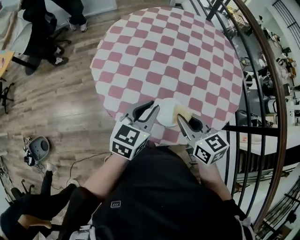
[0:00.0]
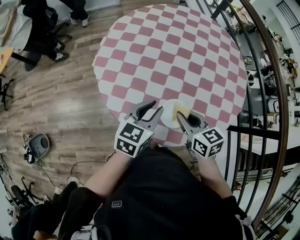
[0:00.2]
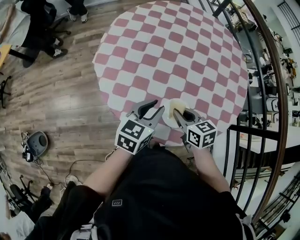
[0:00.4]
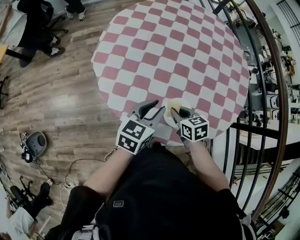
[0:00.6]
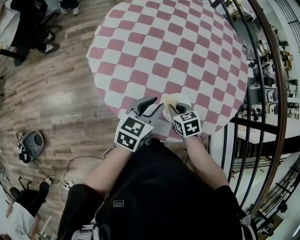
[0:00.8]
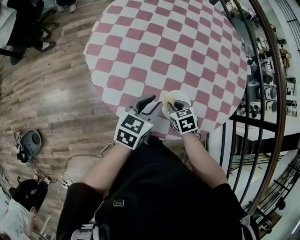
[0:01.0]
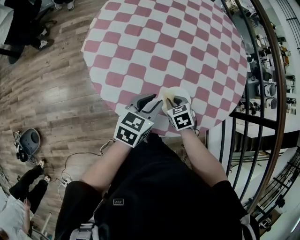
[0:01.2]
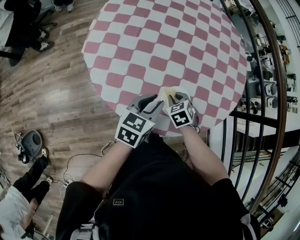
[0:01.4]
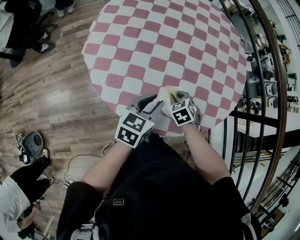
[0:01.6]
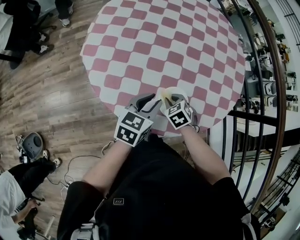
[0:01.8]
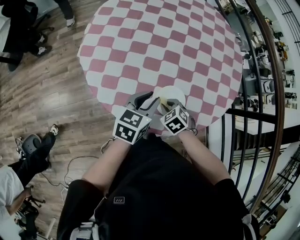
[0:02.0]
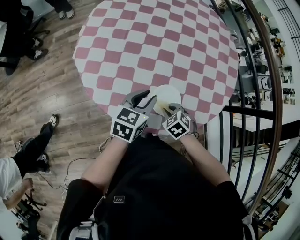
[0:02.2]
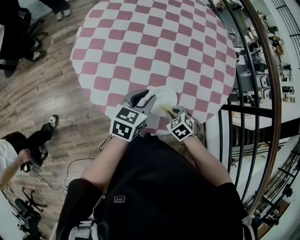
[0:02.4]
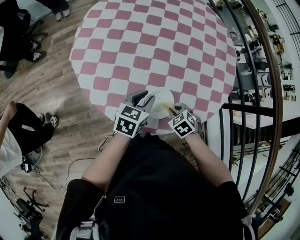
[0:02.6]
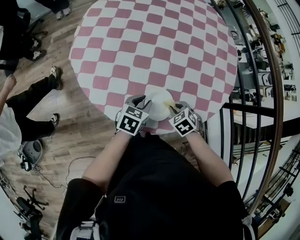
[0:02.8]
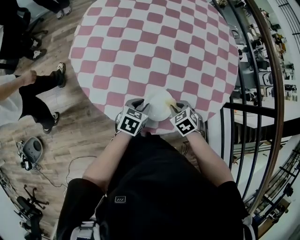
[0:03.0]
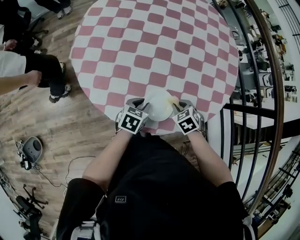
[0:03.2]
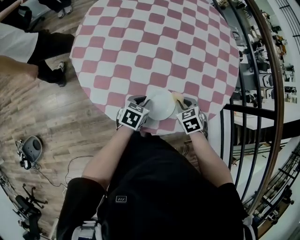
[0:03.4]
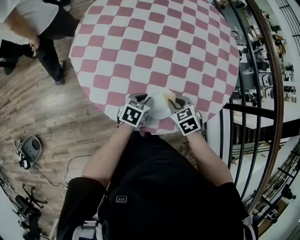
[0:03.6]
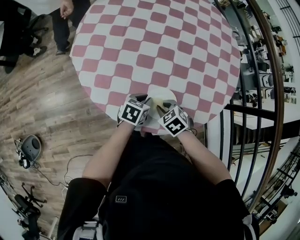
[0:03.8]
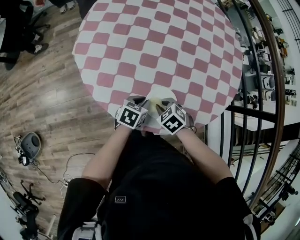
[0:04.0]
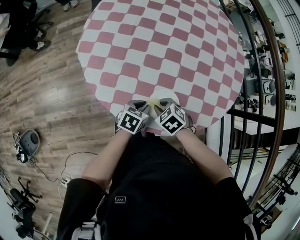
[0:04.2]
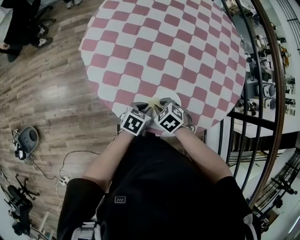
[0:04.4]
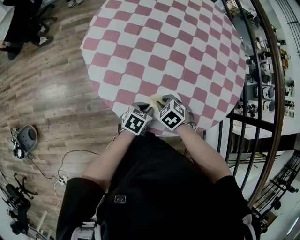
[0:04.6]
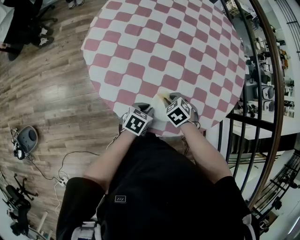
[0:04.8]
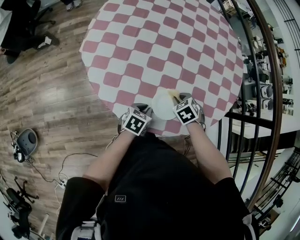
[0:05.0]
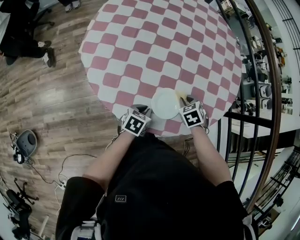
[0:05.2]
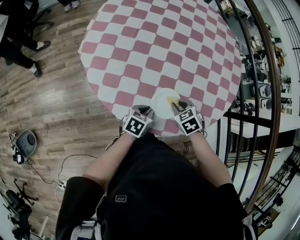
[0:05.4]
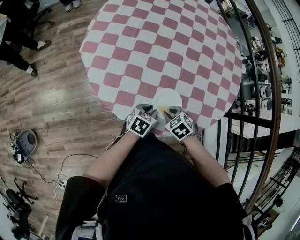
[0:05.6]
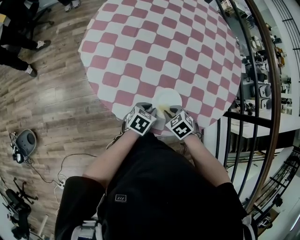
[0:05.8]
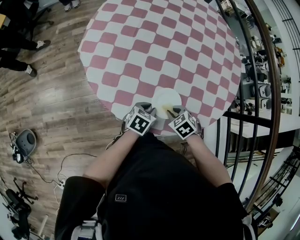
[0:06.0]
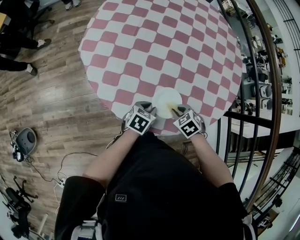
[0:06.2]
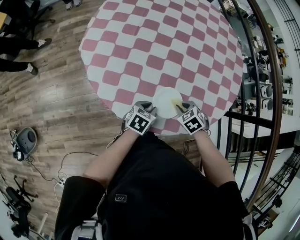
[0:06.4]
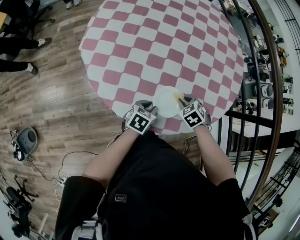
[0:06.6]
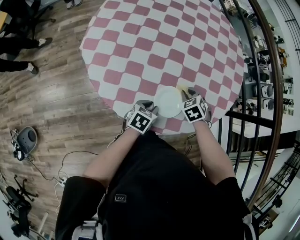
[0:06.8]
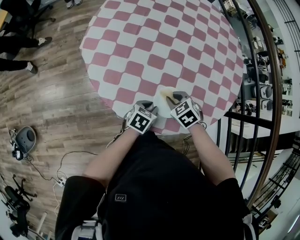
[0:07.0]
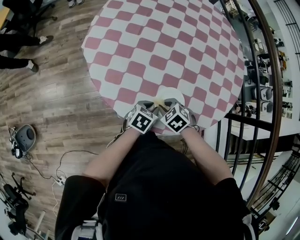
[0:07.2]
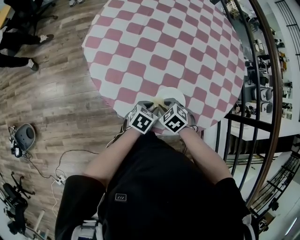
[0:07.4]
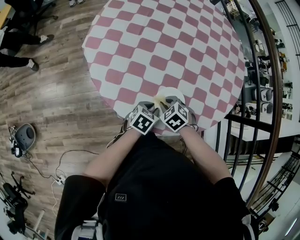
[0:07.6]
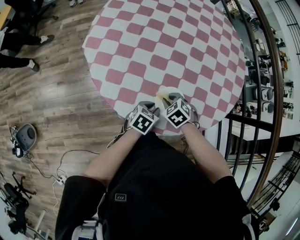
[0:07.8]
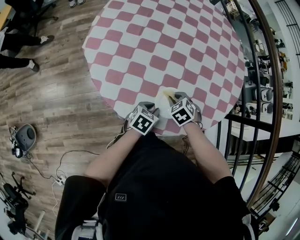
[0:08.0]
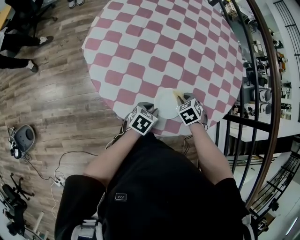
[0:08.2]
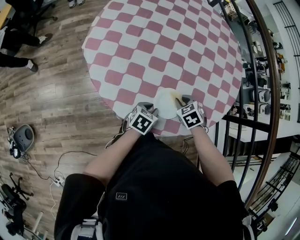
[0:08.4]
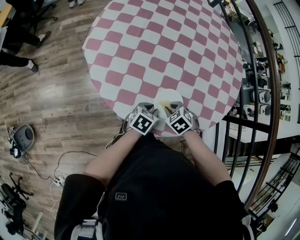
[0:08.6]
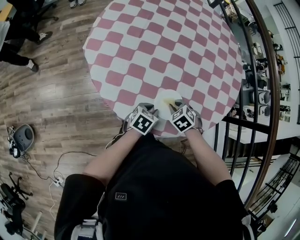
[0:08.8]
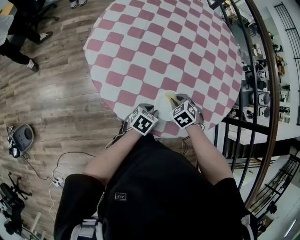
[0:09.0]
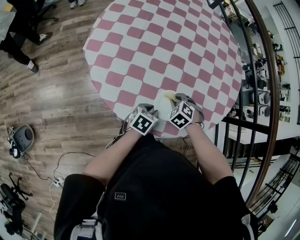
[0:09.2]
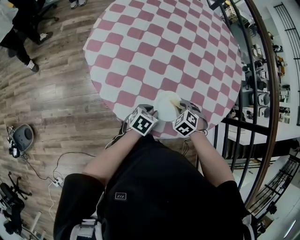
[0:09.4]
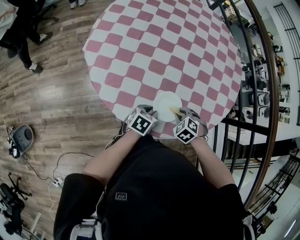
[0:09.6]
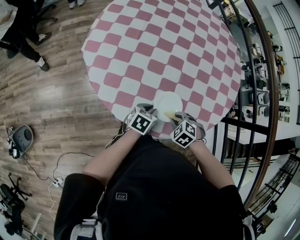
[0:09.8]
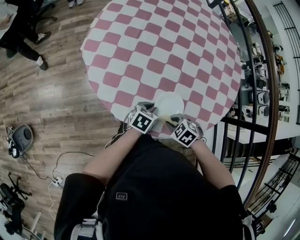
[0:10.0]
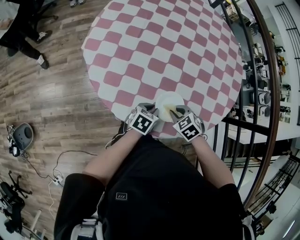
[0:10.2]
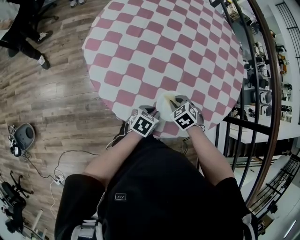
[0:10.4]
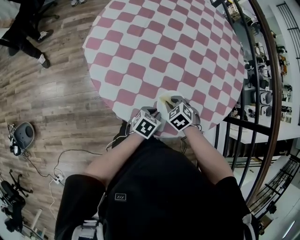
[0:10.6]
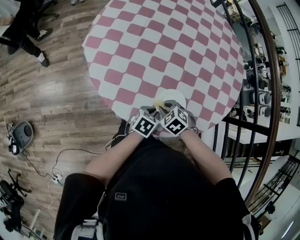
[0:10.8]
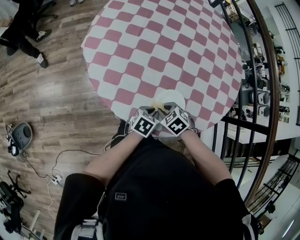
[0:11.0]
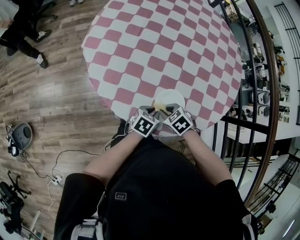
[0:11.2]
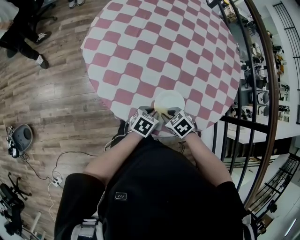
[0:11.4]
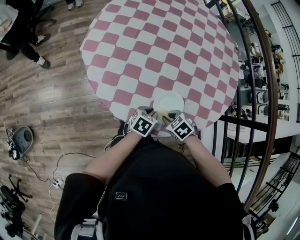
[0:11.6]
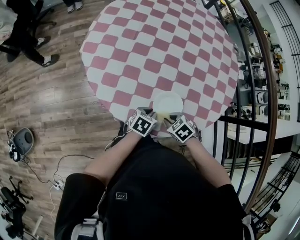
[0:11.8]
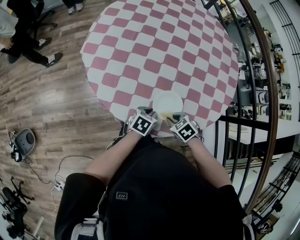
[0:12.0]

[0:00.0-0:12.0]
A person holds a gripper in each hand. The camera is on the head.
0:00.0 to 0:01.6: The left gripper moves downward, roughly 10 cm, while the right gripper travels downward by some 25 cm, and tilts its fingers about 40 degrees downward.
0:01.6 to 0:03.0: The left gripper shifts some 15 cm downward; the right gripper shifts approximately 10 cm to the right and backward.
0:03.0 to 0:04.4: The right gripper travels to the left by roughly 10 cm.
0:10.4 to 0:12.0: The right gripper ends up approximately 10 cm from where it was.

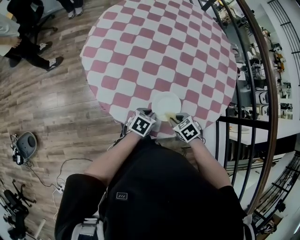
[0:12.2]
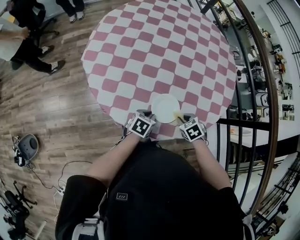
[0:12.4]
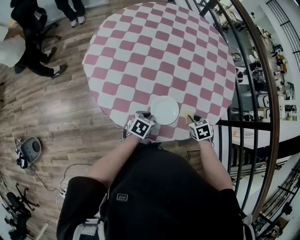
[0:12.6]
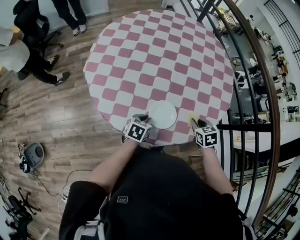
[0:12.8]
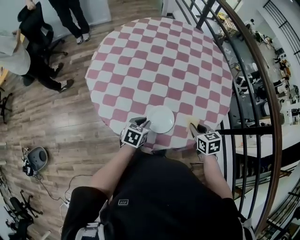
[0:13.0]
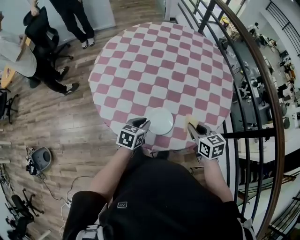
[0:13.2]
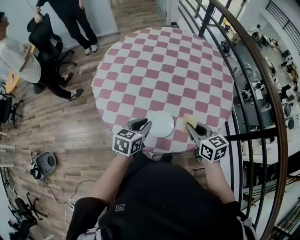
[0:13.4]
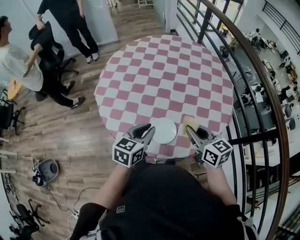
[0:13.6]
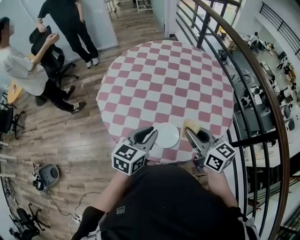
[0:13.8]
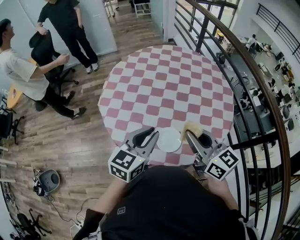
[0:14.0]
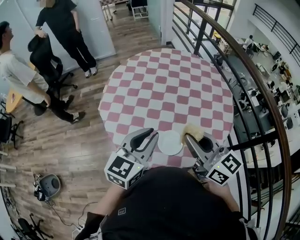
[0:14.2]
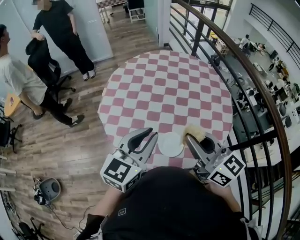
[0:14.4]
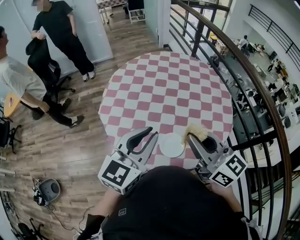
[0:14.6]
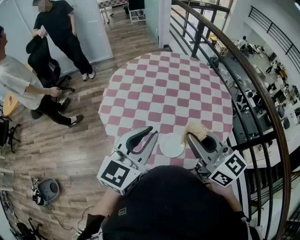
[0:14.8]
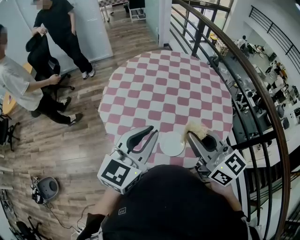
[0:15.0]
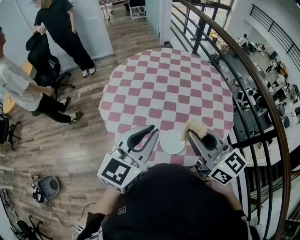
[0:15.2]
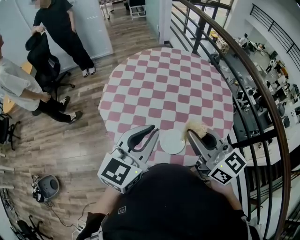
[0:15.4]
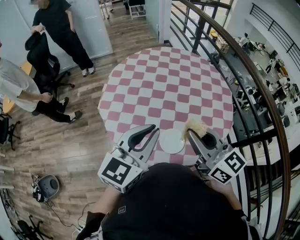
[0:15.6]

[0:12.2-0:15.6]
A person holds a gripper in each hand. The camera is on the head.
0:12.2 to 0:13.8: Both grippers move upward, approximately 30 cm. The left gripper rotates approximately 30 degrees; the right gripper angles its fingers upward, by roughly 60 degrees.
0:13.8 to 0:15.6: The right gripper heads upward and to the left, covering approximately 15 cm. The left gripper moves upward, approximately 15 cm, and rotates about 20 degrees.

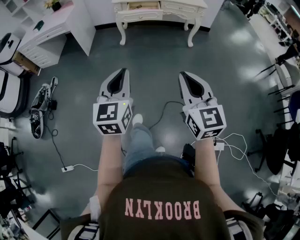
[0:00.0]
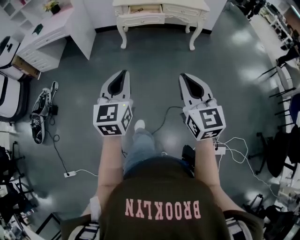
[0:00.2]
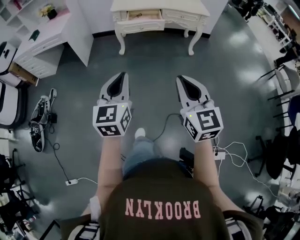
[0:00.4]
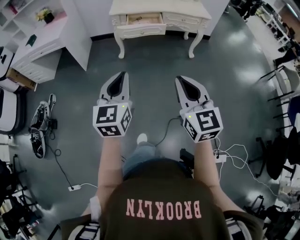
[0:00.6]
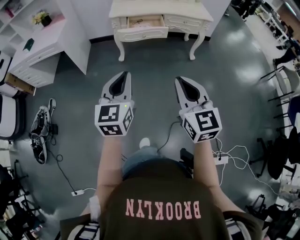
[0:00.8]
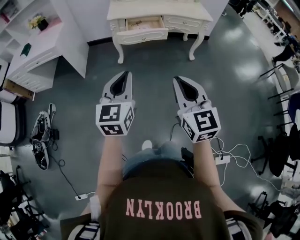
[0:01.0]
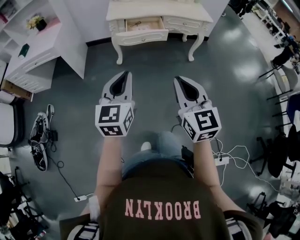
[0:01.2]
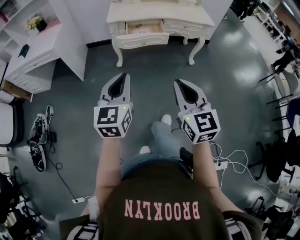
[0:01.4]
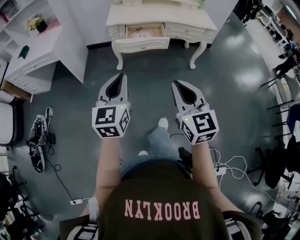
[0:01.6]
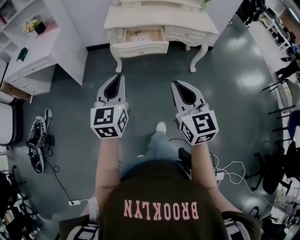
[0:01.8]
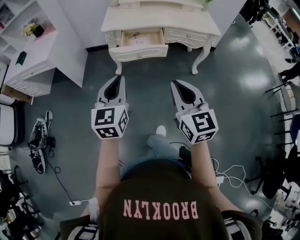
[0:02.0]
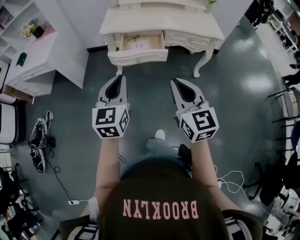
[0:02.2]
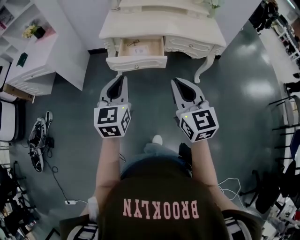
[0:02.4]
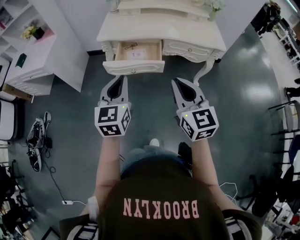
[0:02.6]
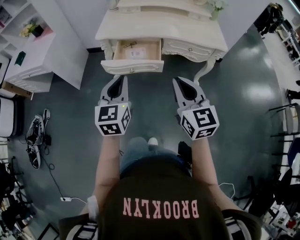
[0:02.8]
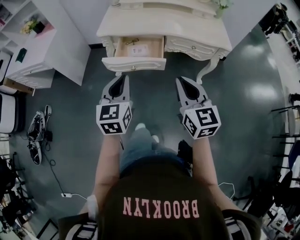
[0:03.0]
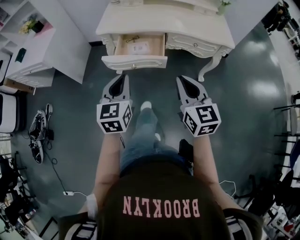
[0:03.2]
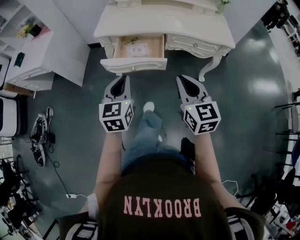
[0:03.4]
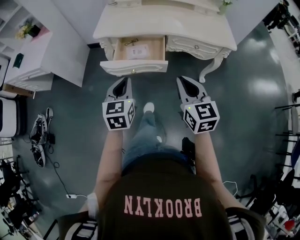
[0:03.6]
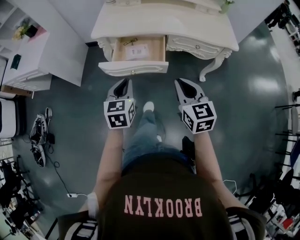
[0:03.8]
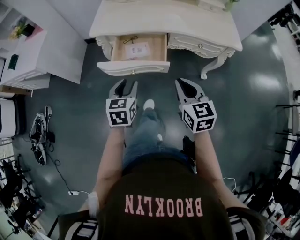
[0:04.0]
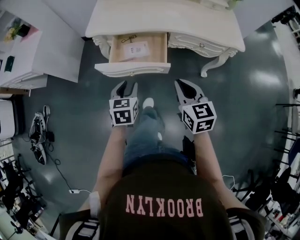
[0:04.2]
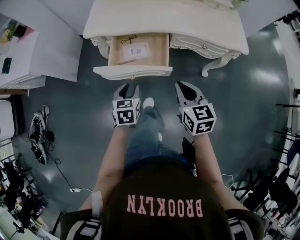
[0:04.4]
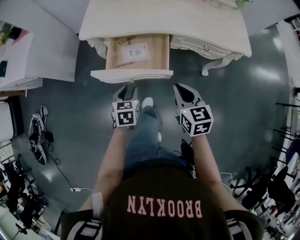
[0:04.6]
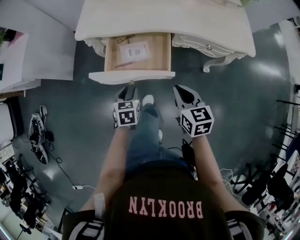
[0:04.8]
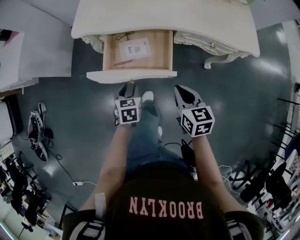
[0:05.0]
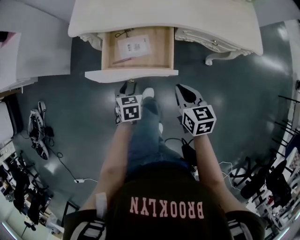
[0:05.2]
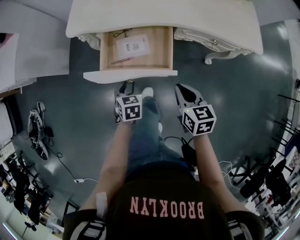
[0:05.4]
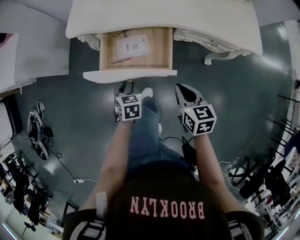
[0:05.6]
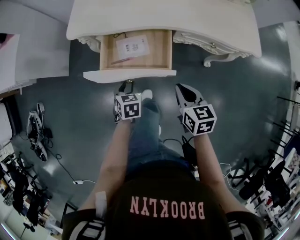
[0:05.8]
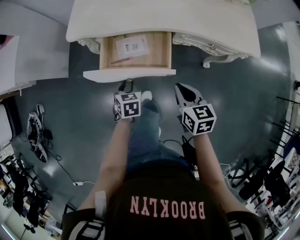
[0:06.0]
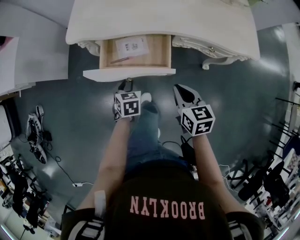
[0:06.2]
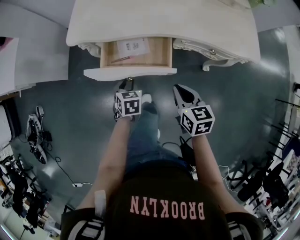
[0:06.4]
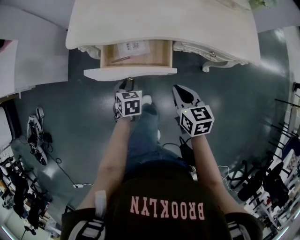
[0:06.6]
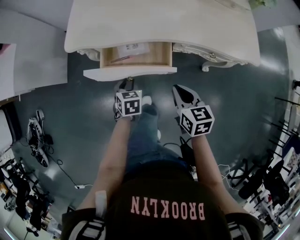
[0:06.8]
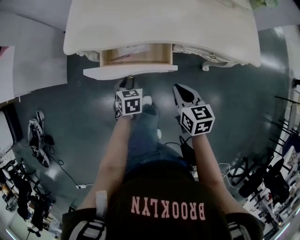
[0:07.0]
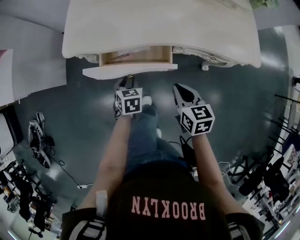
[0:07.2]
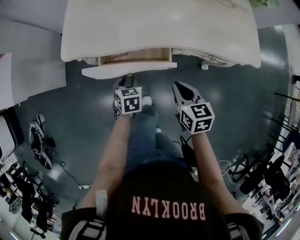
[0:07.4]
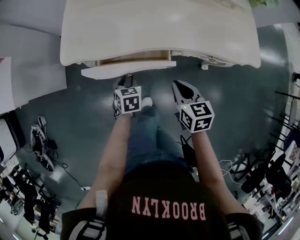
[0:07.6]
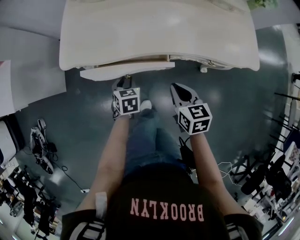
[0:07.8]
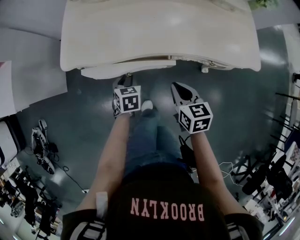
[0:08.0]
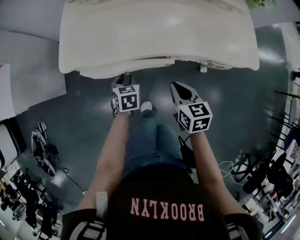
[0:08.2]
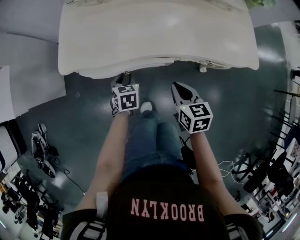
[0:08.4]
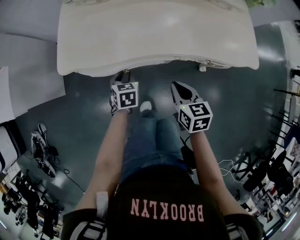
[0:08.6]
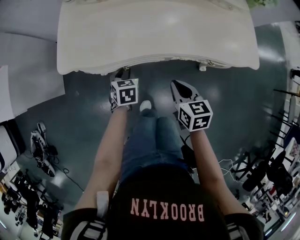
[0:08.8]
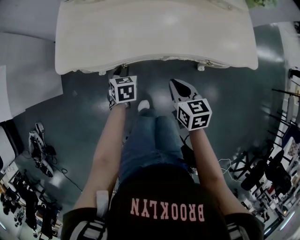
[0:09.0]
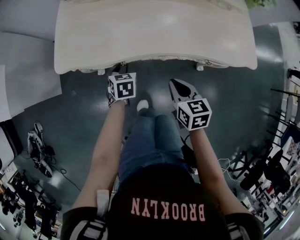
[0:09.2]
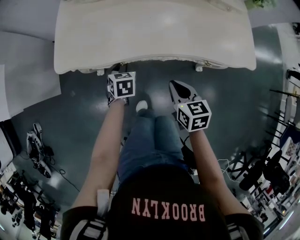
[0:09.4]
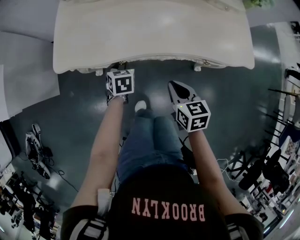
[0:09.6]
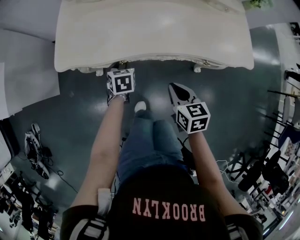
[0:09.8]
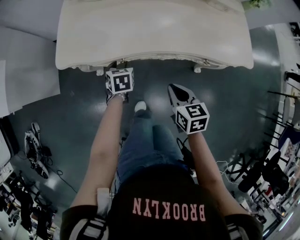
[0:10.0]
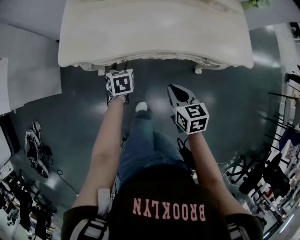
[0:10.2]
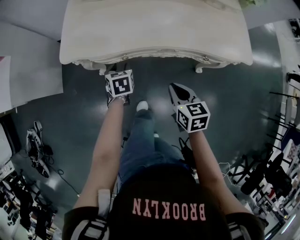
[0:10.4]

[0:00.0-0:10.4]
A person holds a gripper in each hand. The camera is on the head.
0:00.0 to 0:01.4: The grippers both shift forward by approximately 30 cm.
0:01.4 to 0:03.0: The grippers both shift forward and to the right by about 35 cm.
0:03.0 to 0:04.4: The right gripper moves forward and downward, about 20 cm; the left gripper travels downward and forward by roughly 25 cm, turns by about 30 degrees, and opens up.
0:04.4 to 0:06.0: The grippers both shift downward and forward by roughly 10 cm.
0:06.0 to 0:07.4: Both grippers travel together forward, some 10 cm.
0:07.4 to 0:09.0: The left gripper heads forward, covering approximately 10 cm.
0:09.0 to 0:10.4: The right gripper moves backward, some 5 cm.
